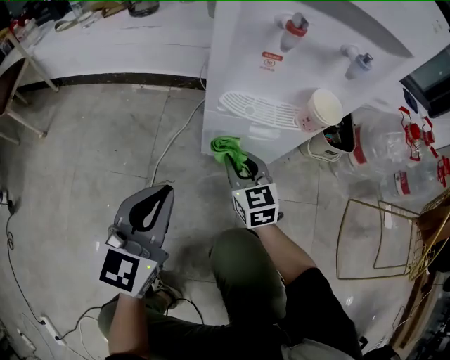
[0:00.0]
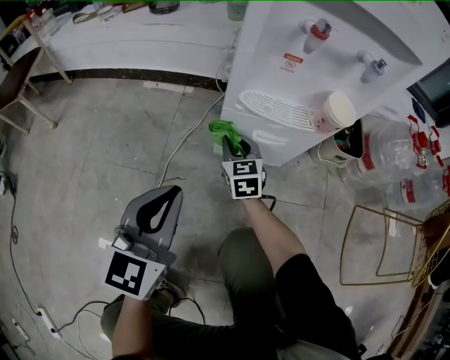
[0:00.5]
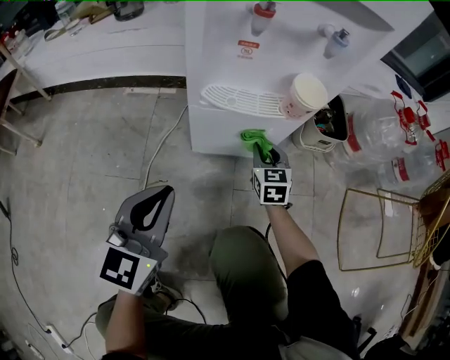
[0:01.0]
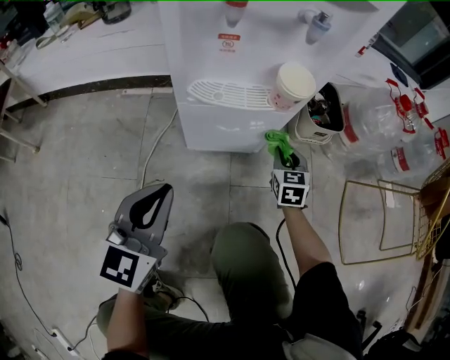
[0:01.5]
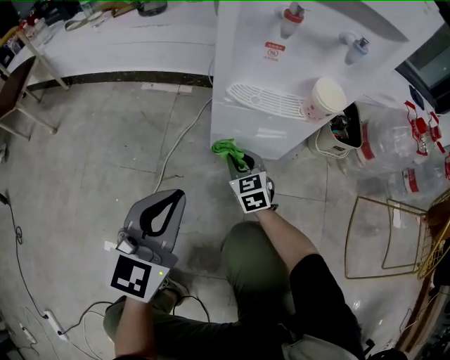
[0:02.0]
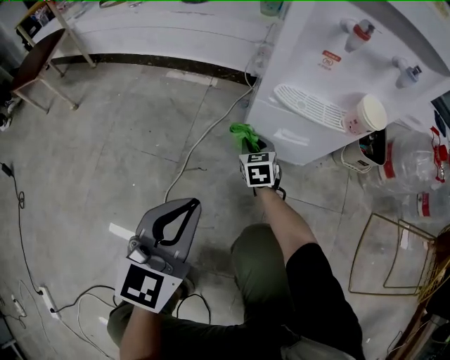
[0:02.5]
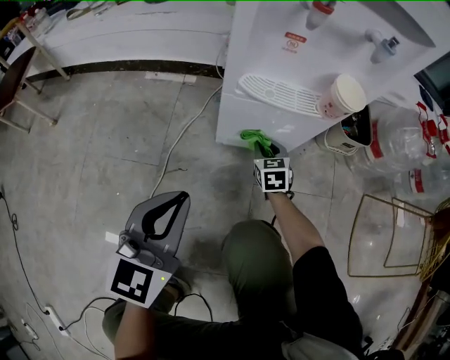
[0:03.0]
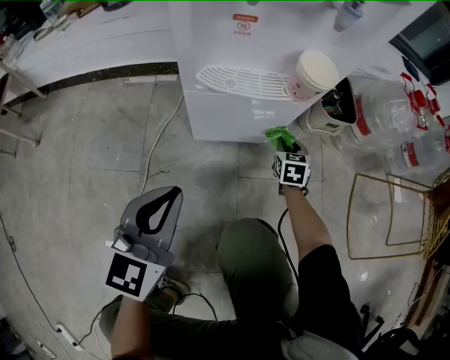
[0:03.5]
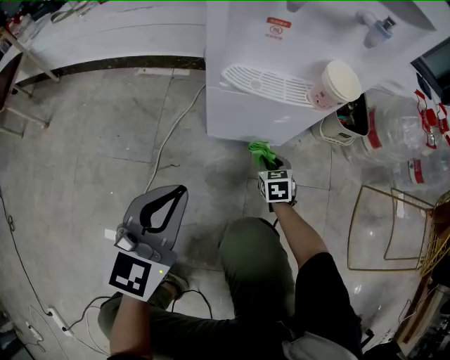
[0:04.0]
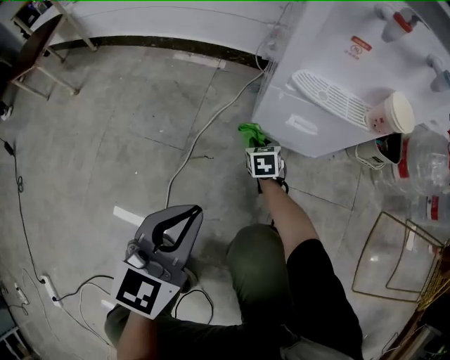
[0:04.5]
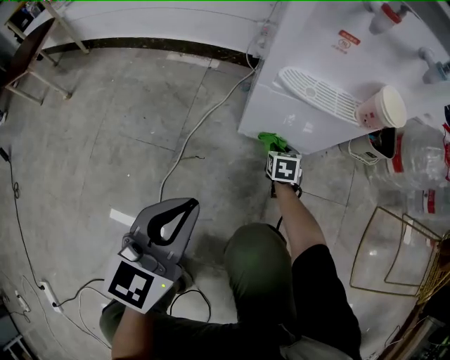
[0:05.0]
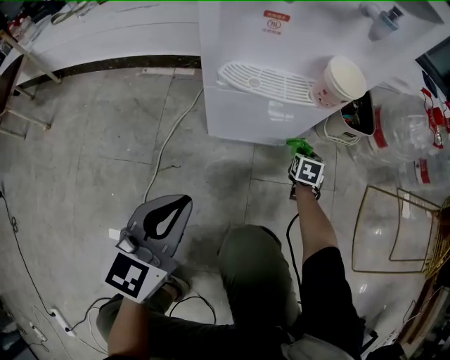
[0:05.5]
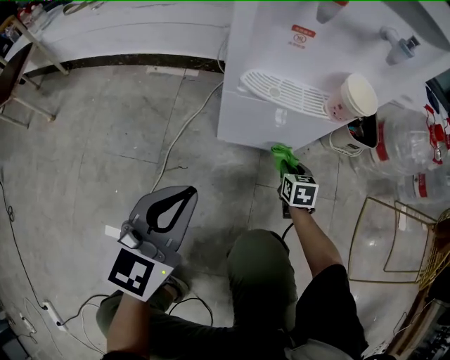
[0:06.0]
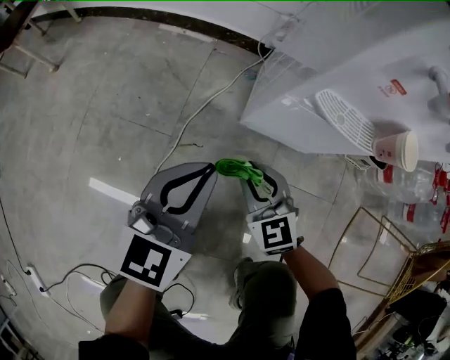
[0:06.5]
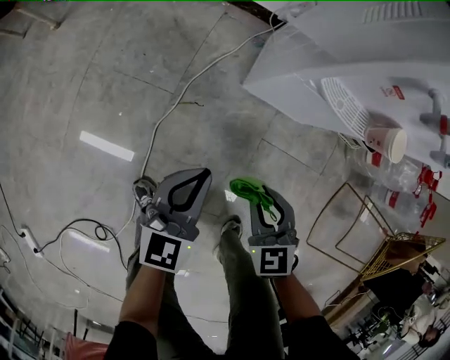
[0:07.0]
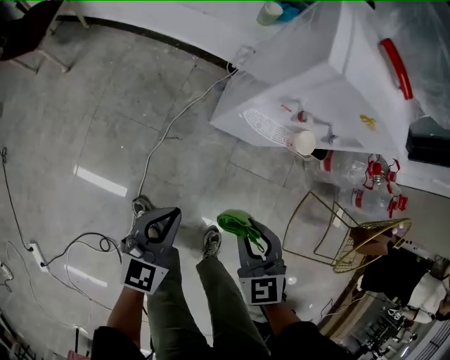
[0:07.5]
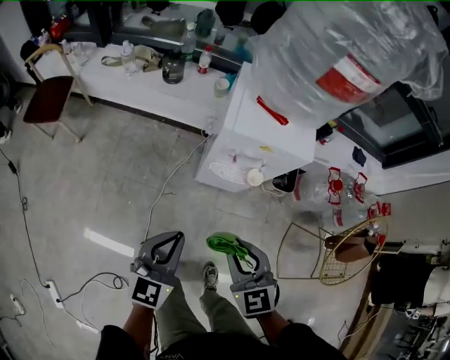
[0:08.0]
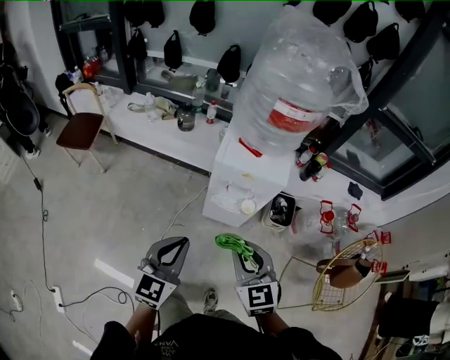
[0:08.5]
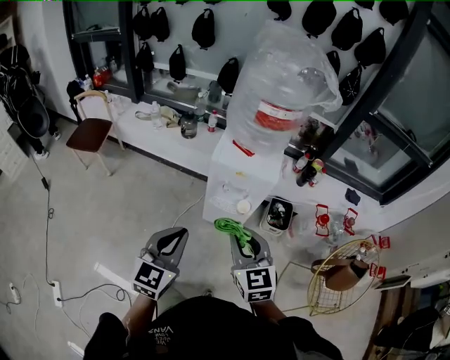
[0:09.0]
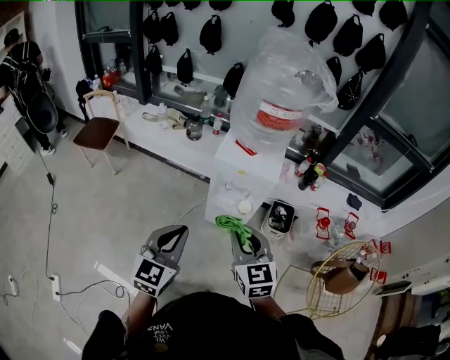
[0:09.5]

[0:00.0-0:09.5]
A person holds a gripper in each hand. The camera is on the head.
0:00.0 to 0:02.0: The right gripper goes left and right, approximately 25 cm each way, reversing 2 times.
0:02.0 to 0:04.0: The right gripper swings left and right, some 30 cm each way, with 2 reversals, and turns by about 20 degrees.
0:04.0 to 0:05.5: The right gripper goes approximately 15 cm to the right and forward, and swivels approximately 20 degrees.
0:05.5 to 0:07.5: The right gripper shifts some 50 cm upward, and changes its angle by some 50 degrees. The left gripper travels upward by some 20 cm.
0:07.5 to 0:09.5: The grippers both shift upward by roughly 35 cm. The right gripper changes its angle by roughly 30 degrees.

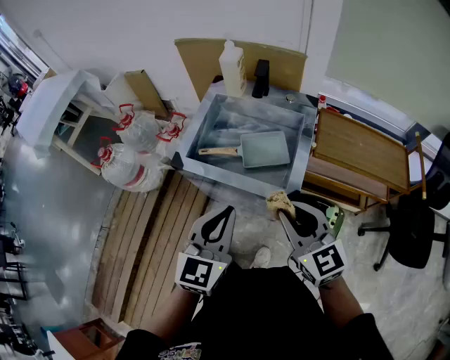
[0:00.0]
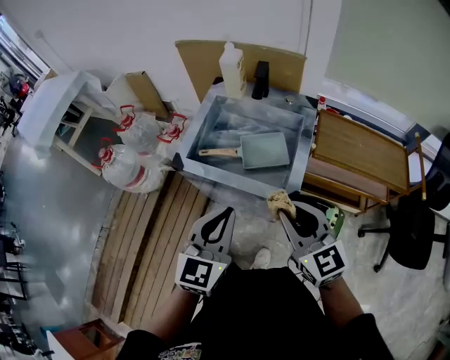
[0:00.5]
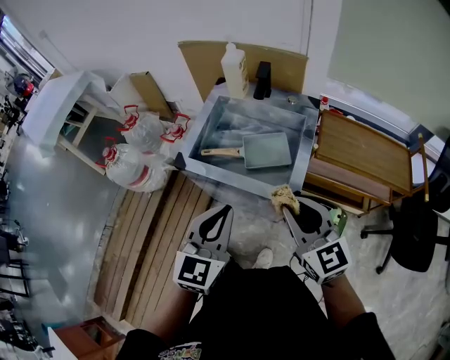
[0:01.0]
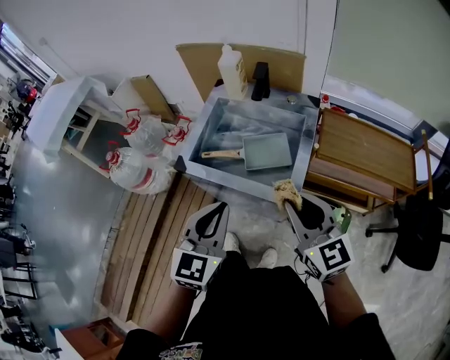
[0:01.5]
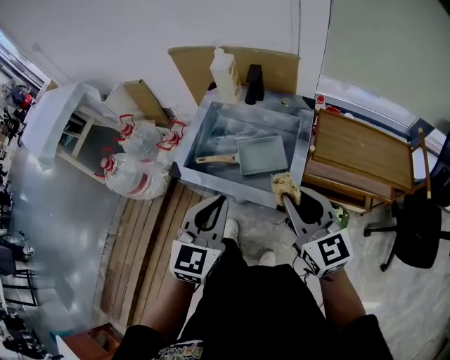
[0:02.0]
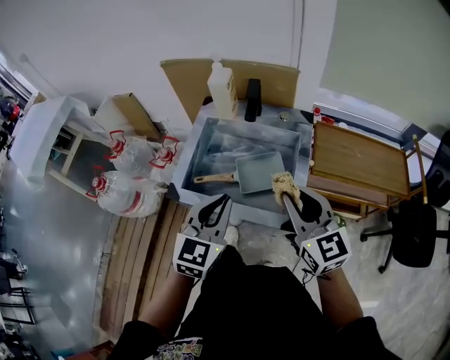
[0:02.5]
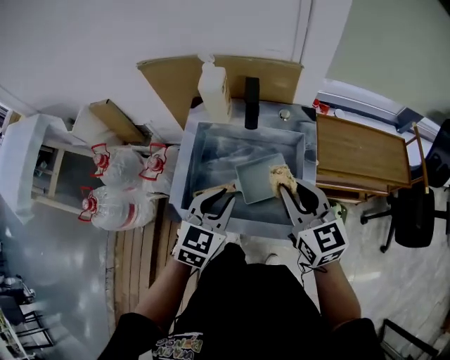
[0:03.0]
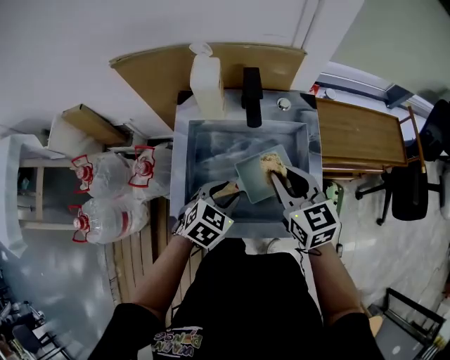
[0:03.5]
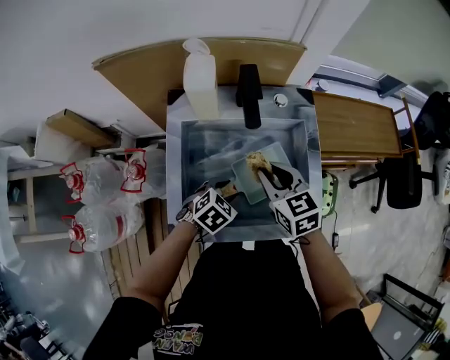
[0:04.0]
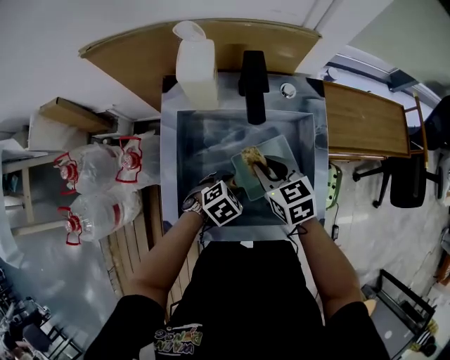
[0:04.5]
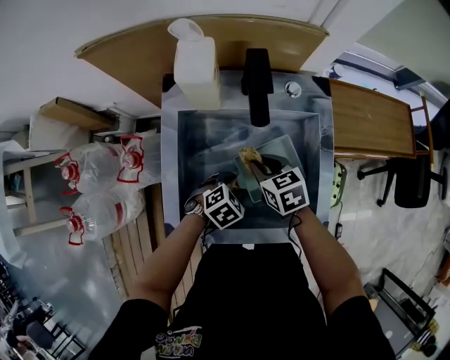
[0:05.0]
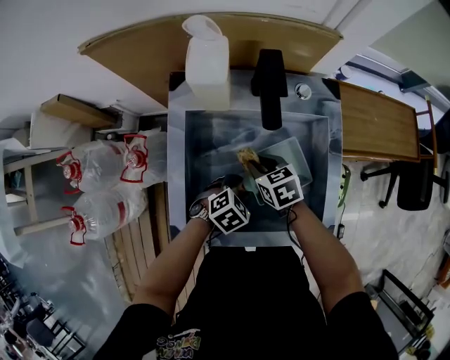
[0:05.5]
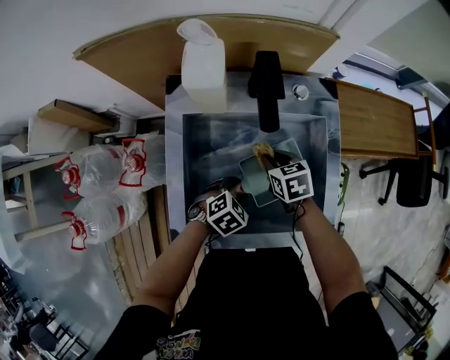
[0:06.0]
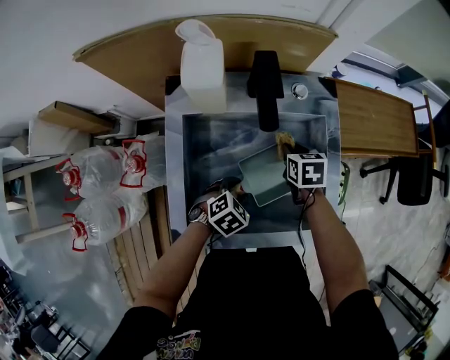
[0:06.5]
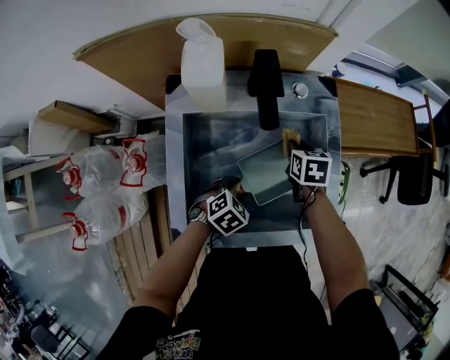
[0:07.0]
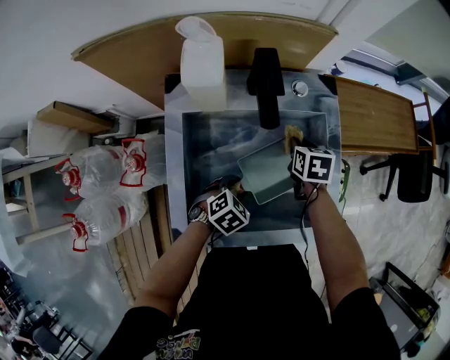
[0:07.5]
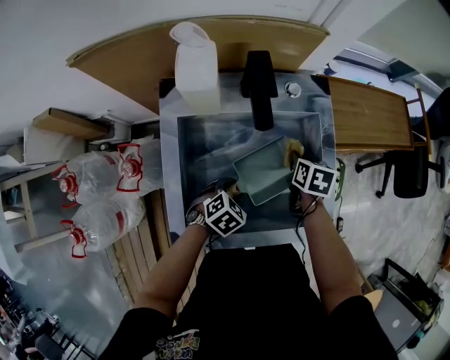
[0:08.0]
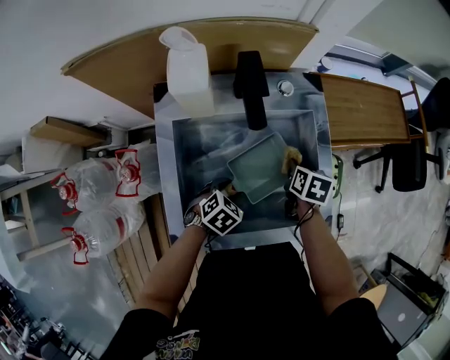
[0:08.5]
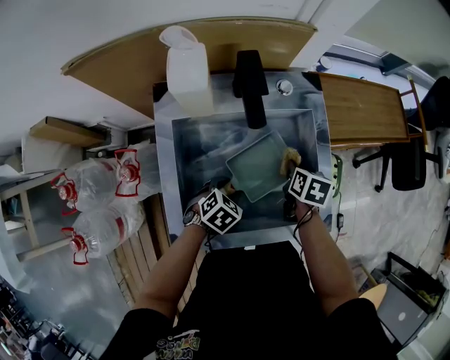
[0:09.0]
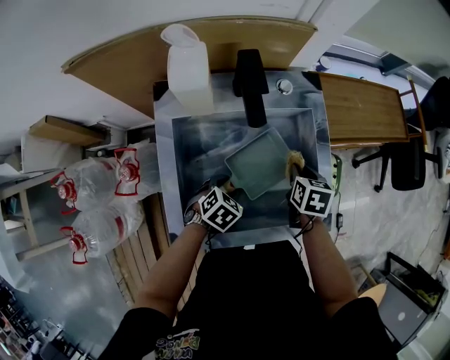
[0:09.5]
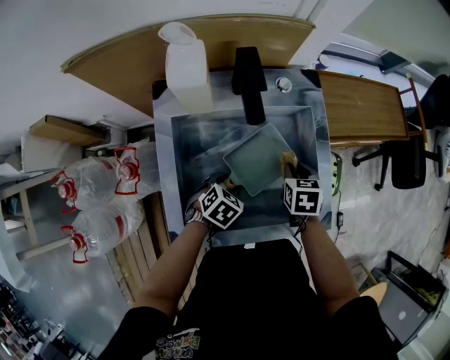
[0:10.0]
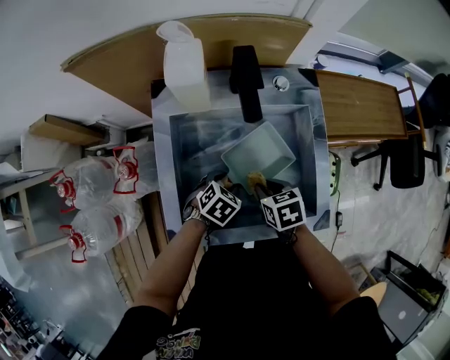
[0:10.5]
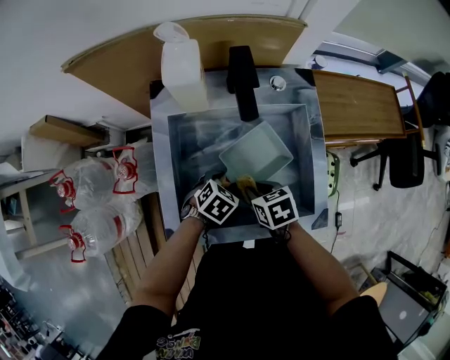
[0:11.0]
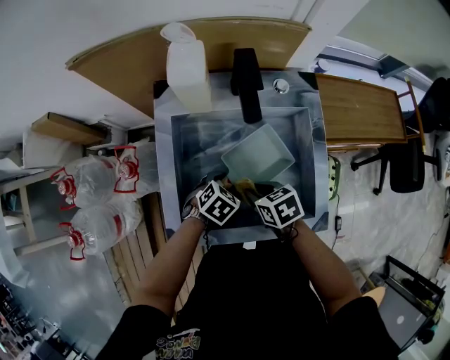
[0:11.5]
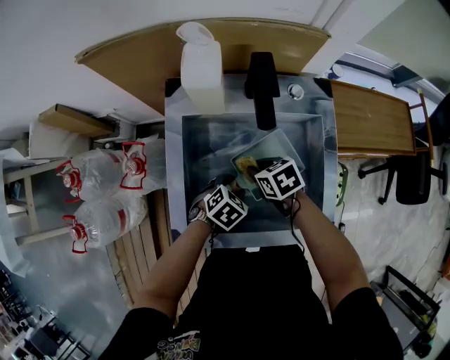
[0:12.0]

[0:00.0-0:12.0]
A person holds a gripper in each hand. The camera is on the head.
0:00.0 to 0:02.0: The left gripper moves some 5 cm. Meanwhile the right gripper changes place by approximately 5 cm.
0:02.0 to 0:04.0: The right gripper shifts by some 30 cm, and changes its angle by some 30 degrees. The left gripper travels downward by about 30 cm, angles its fingers downward, by about 40 degrees, and opens up.
0:04.0 to 0:06.0: The right gripper goes some 15 cm downward, and rotates approximately 20 degrees. Meanwhile the left gripper goes approximately 5 cm downward.
0:06.0 to 0:08.0: The right gripper goes about 10 cm to the right, and rotates about 30 degrees.
0:08.0 to 0:10.0: The right gripper shifts by roughly 5 cm.
0:10.0 to 0:12.0: The right gripper ends up roughly 15 cm from where it was, and swivels approximately 40 degrees.

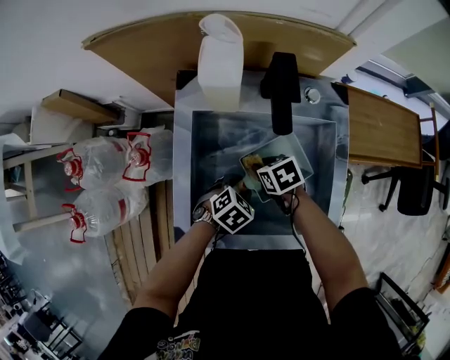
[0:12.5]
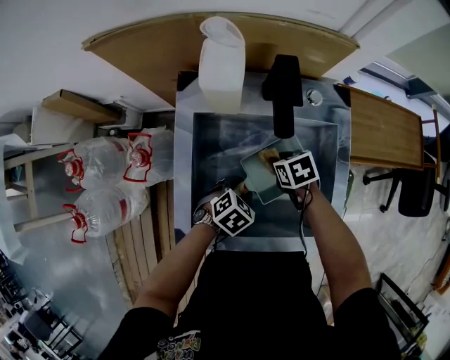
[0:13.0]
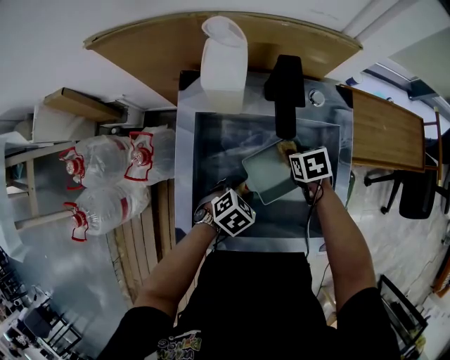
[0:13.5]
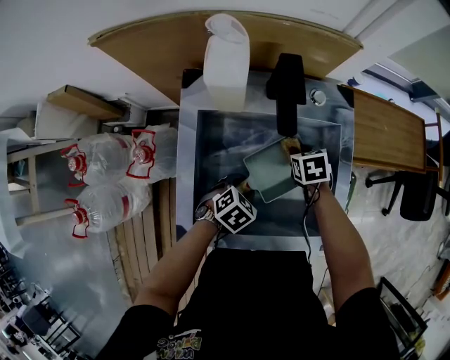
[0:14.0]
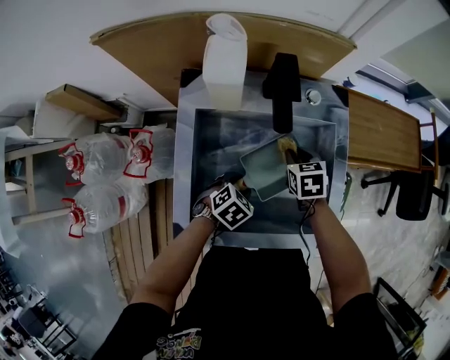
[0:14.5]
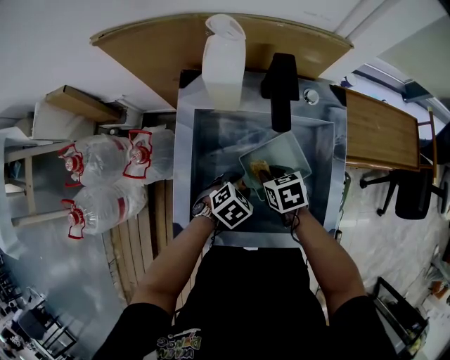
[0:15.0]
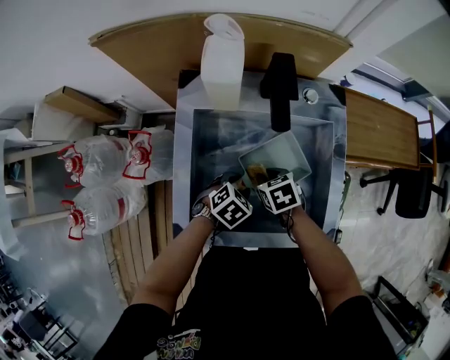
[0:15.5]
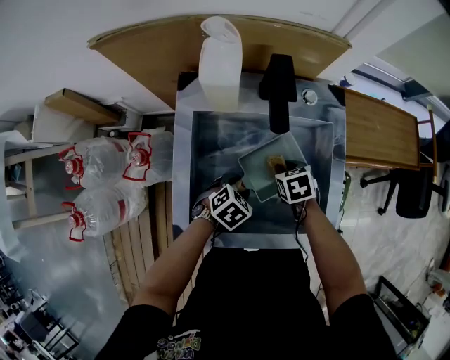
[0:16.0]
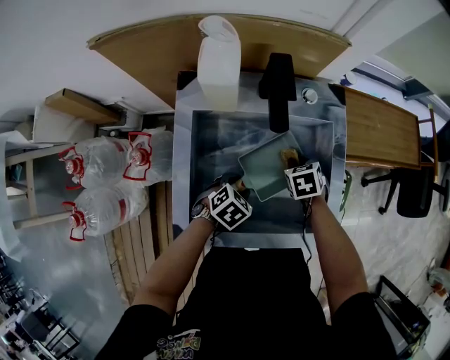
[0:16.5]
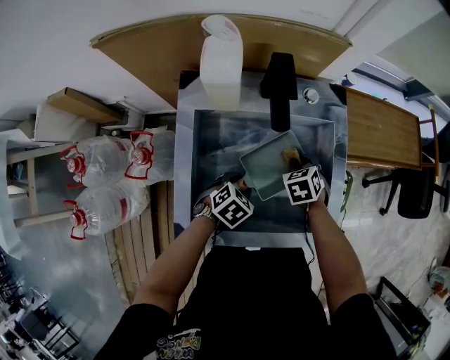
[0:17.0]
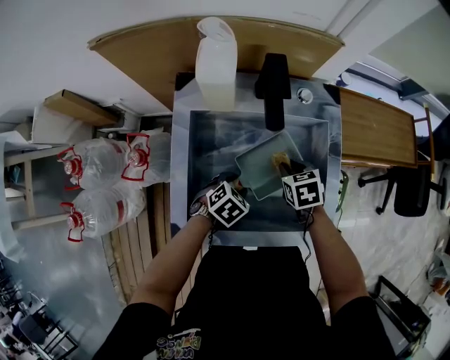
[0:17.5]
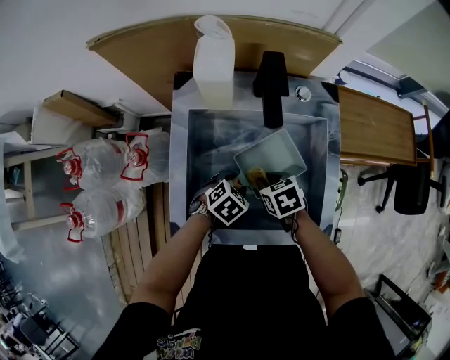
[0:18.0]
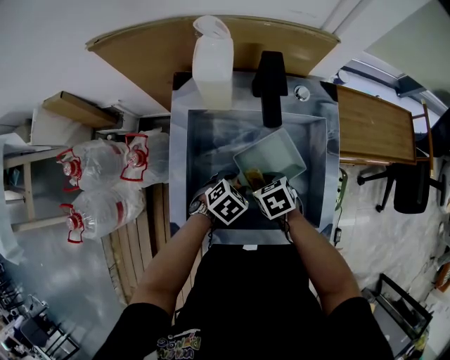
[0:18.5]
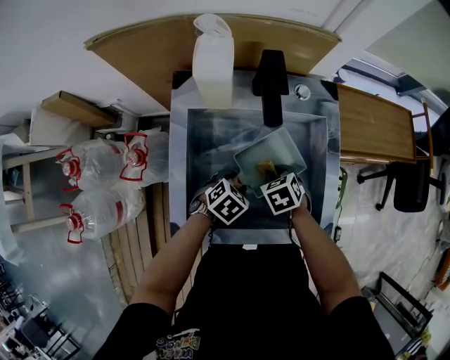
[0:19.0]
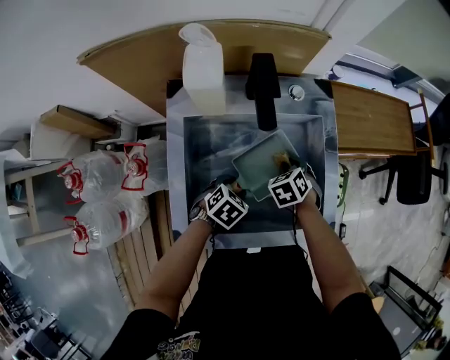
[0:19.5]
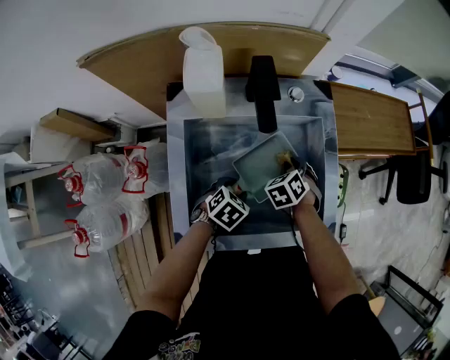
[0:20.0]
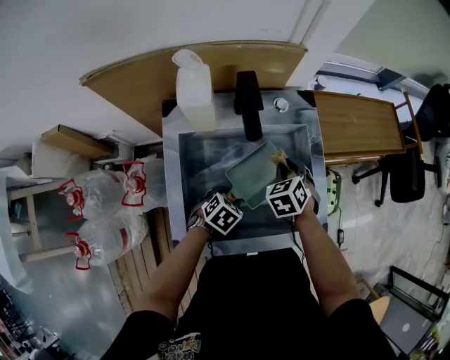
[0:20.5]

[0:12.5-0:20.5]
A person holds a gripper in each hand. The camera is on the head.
0:12.5 to 0:14.5: The right gripper shifts by some 10 cm, and rotates approximately 30 degrees.
0:14.5 to 0:16.5: The right gripper travels backward and back again, roughly 10 cm each way.
0:16.5 to 0:18.5: The right gripper moves roughly 15 cm.
0:18.5 to 0:20.5: The right gripper moves some 15 cm, and swivels about 30 degrees.
